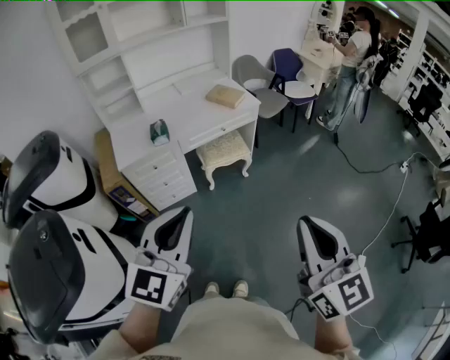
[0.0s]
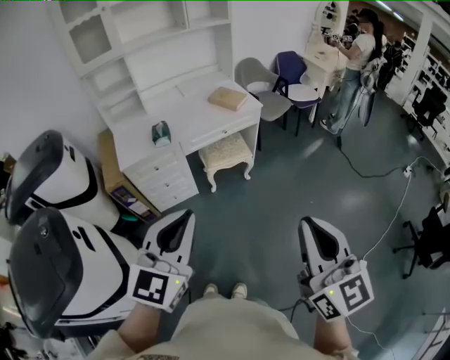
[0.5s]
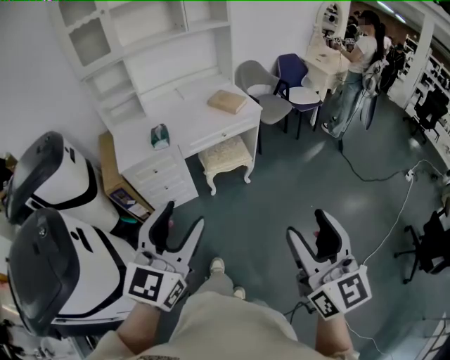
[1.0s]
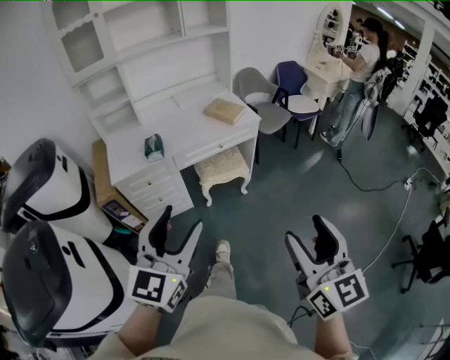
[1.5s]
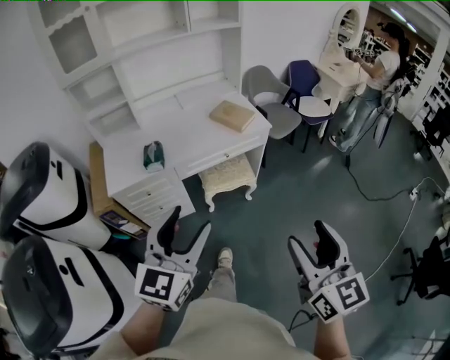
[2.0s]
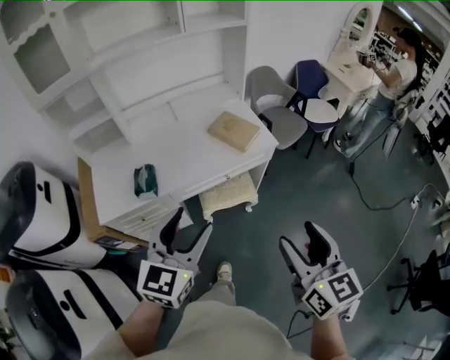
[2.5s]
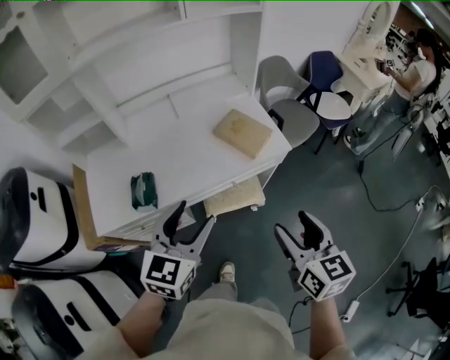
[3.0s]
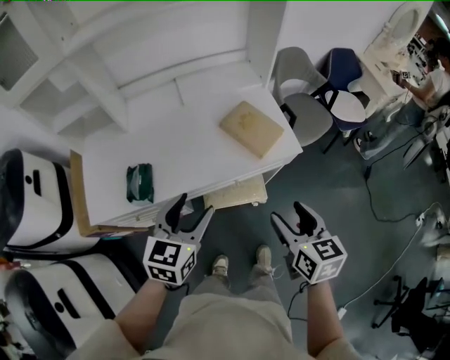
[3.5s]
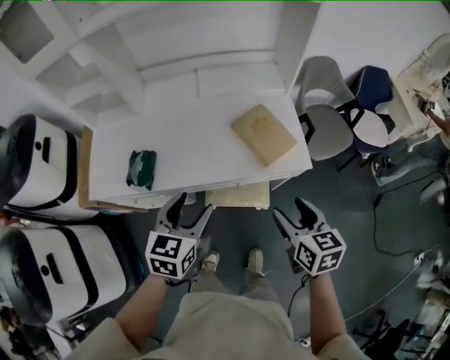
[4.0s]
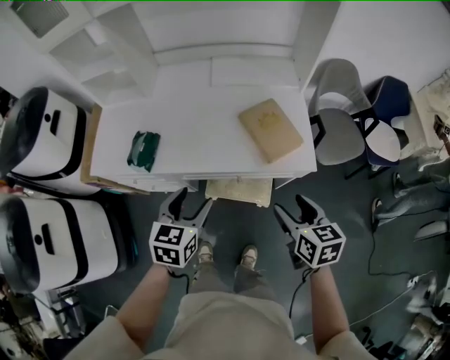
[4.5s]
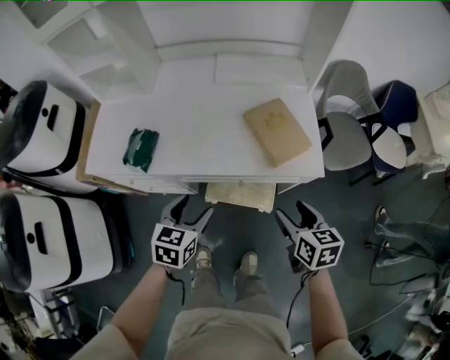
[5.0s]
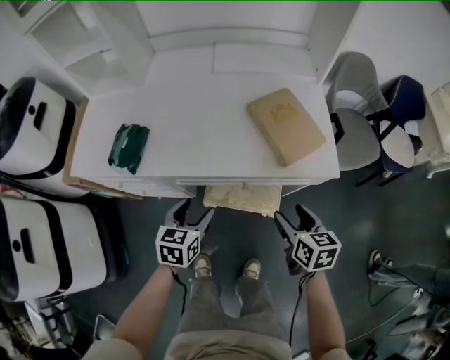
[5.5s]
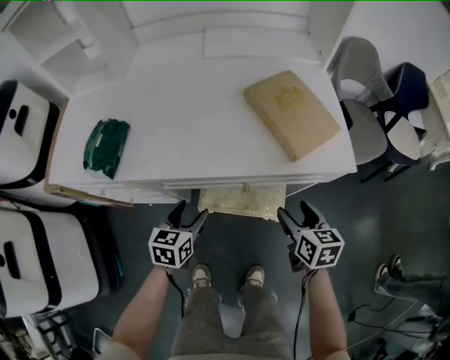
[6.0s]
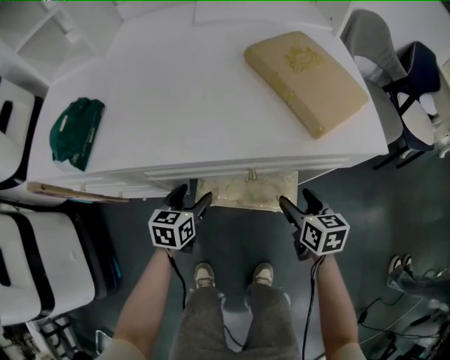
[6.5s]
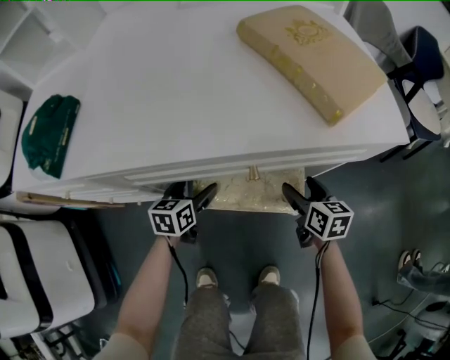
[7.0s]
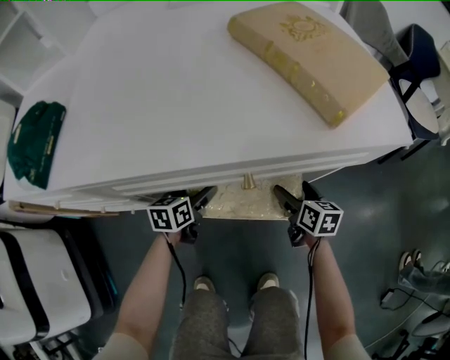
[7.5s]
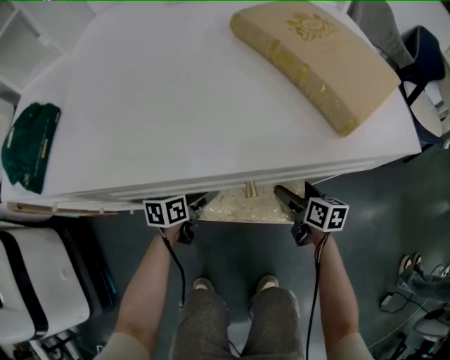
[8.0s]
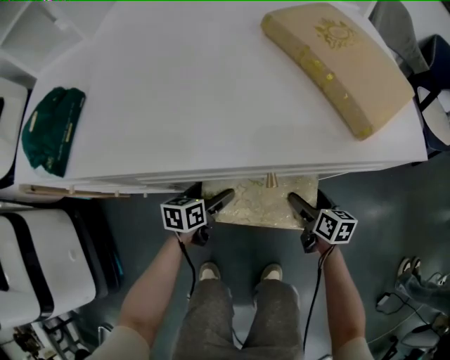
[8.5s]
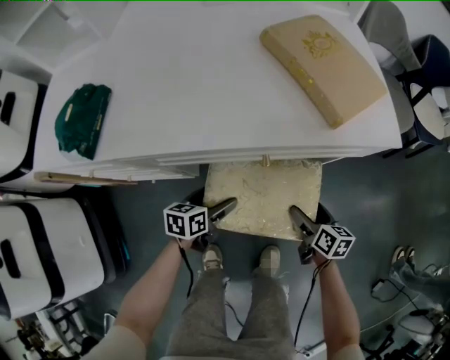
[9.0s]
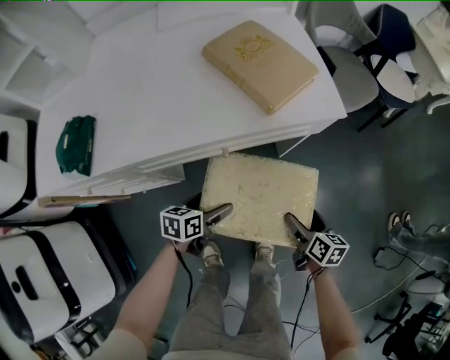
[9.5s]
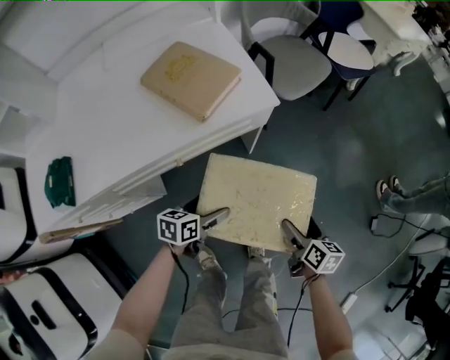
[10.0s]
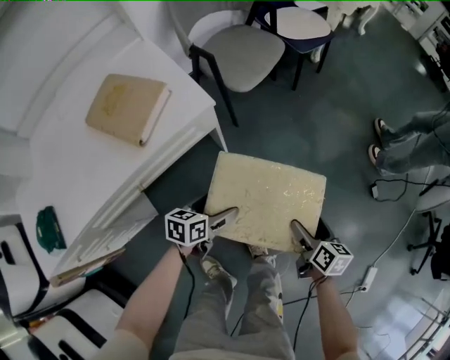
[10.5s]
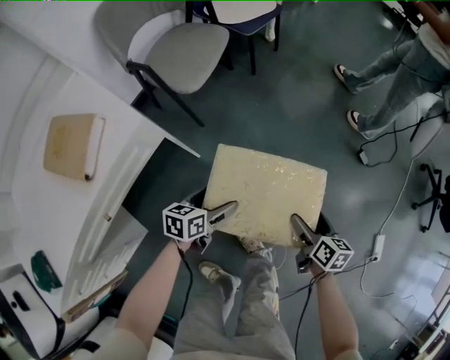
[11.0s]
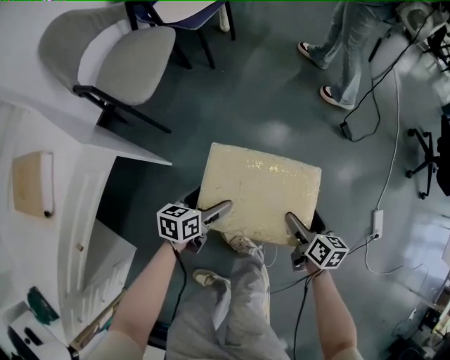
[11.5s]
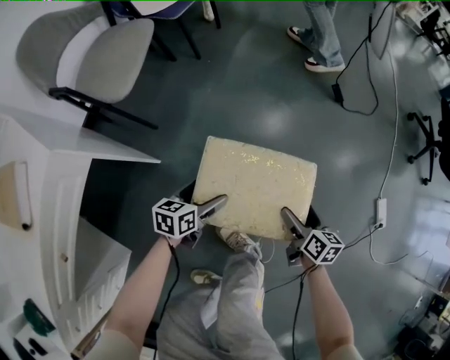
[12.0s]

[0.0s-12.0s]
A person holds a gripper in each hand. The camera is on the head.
0.0s to 2.0s: Both grippers move forward, roughly 20 cm. The right gripper opens. The left gripper opens.
2.0s to 4.0s: Both grippers move forward and downward, approximately 50 cm. The left gripper changes its angle by roughly 30 degrees. Meanwhile the right gripper swivels approximately 40 degrees.
4.0s to 6.0s: Both grippers move downward, roughly 35 cm.
6.0s to 8.0s: The right gripper moves downward, roughly 25 cm, and opens its fingers. Meanwhile the left gripper shifts about 25 cm downward and forward, swivels some 20 degrees, and opens up.
8.0s to 10.0s: The right gripper changes place by some 40 cm, and turns by roughly 30 degrees, while the left gripper shifts by approximately 35 cm, and changes its angle by some 30 degrees.
10.0s to 12.0s: The left gripper ends up approximately 40 cm from where it was, and turns by roughly 40 degrees. Meanwhile the right gripper ends up approximately 35 cm from where it was, and turns by approximately 40 degrees.

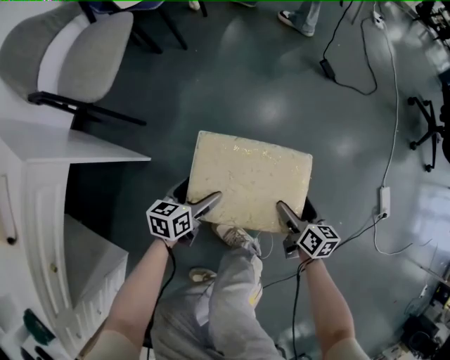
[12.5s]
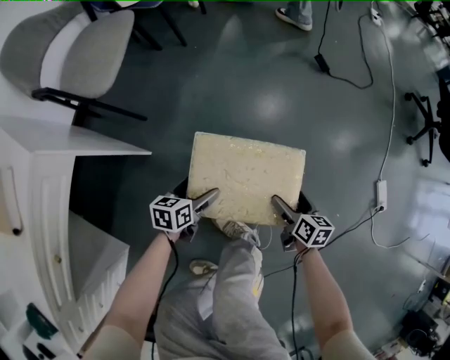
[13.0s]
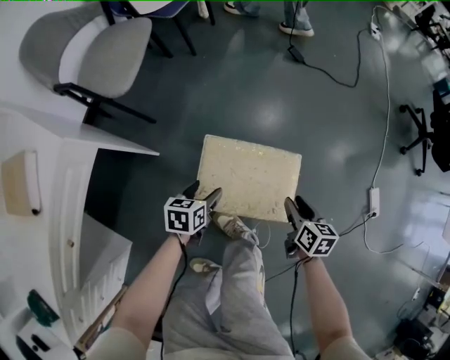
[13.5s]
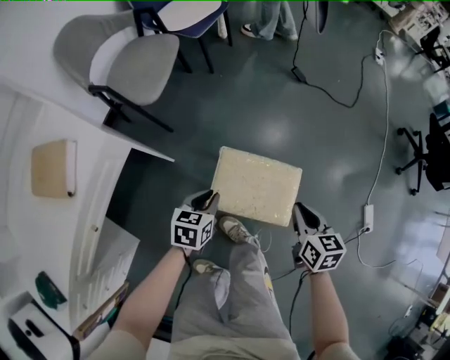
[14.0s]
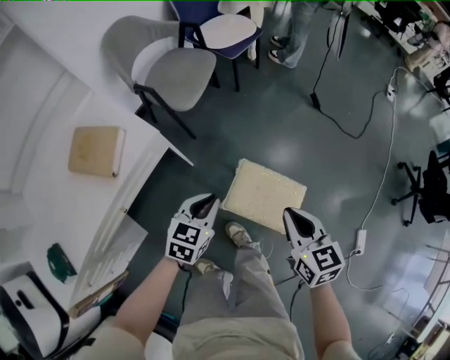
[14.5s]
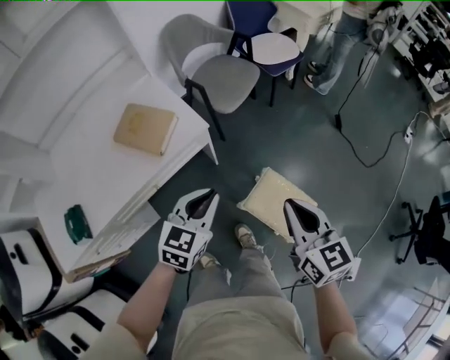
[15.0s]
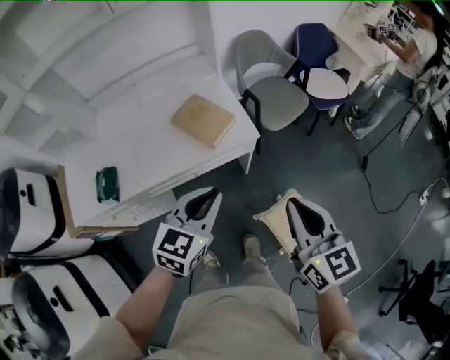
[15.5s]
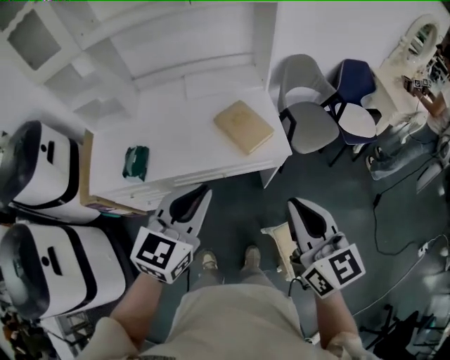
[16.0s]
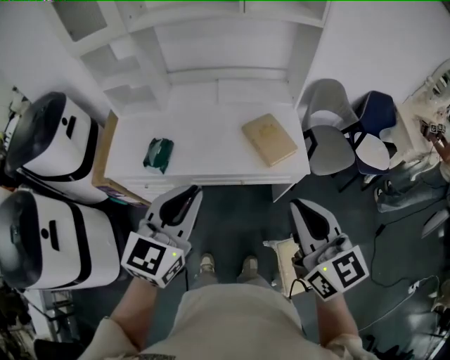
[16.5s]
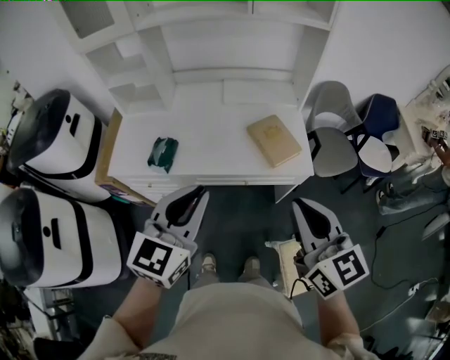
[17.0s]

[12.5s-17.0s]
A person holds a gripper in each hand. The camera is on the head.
12.5s to 14.5s: The right gripper travels upward and to the left by approximately 50 cm, rotates roughly 40 degrees, and closes its fingers. Meanwhile the left gripper heads upward, covering about 35 cm, turns by approximately 30 degrees, and closes its fingers.
14.5s to 17.0s: The right gripper moves approximately 50 cm, and turns by approximately 60 degrees. The left gripper goes roughly 40 cm upward, and changes its angle by approximately 60 degrees.

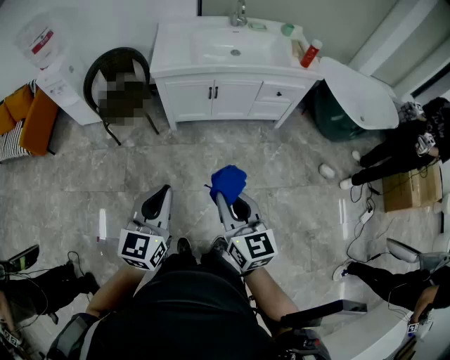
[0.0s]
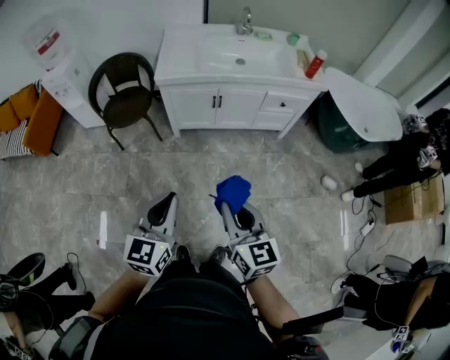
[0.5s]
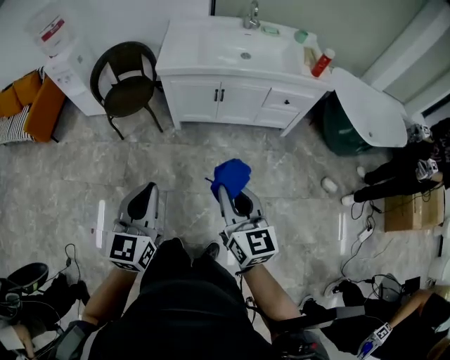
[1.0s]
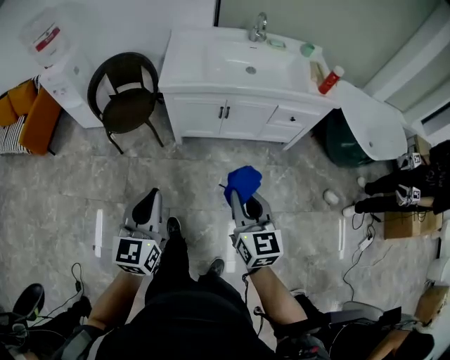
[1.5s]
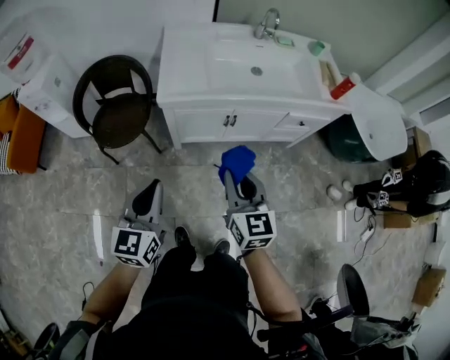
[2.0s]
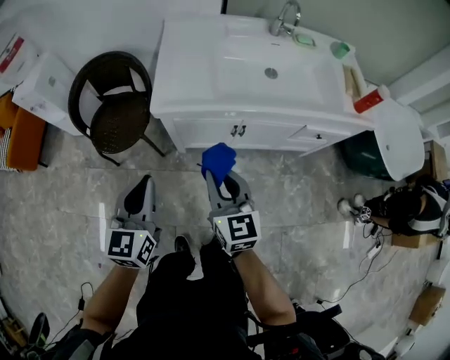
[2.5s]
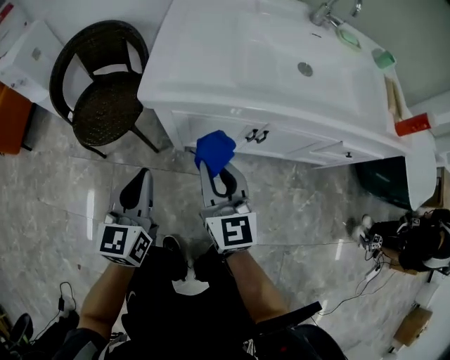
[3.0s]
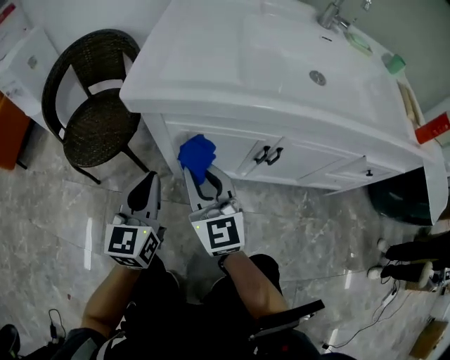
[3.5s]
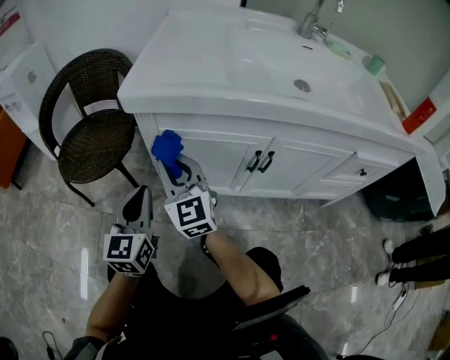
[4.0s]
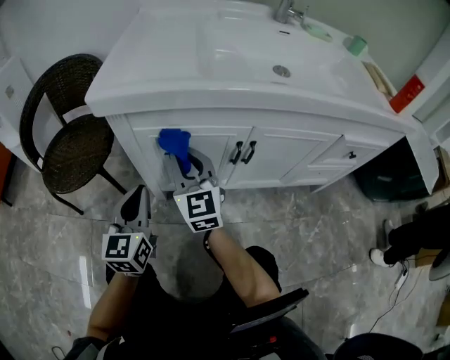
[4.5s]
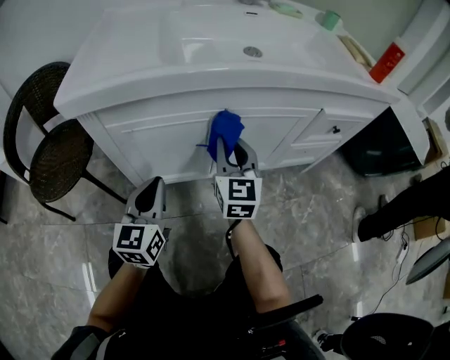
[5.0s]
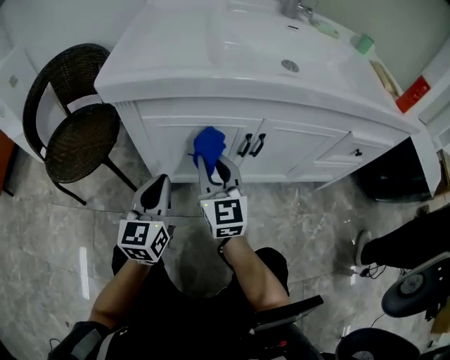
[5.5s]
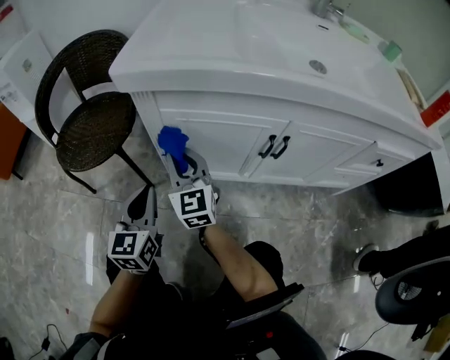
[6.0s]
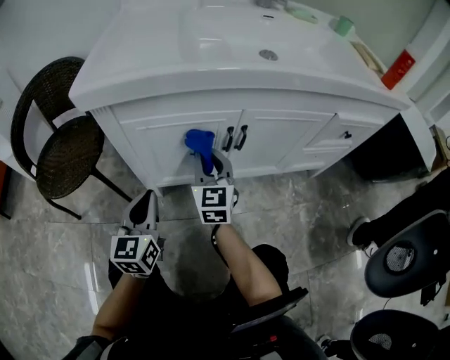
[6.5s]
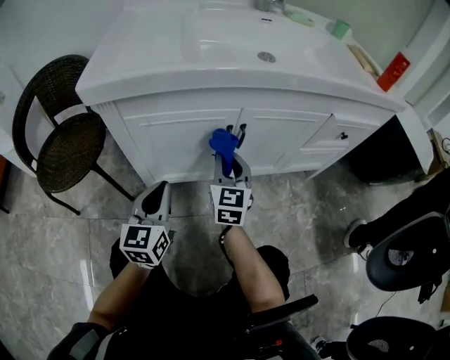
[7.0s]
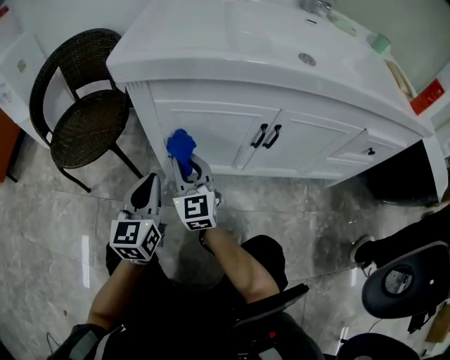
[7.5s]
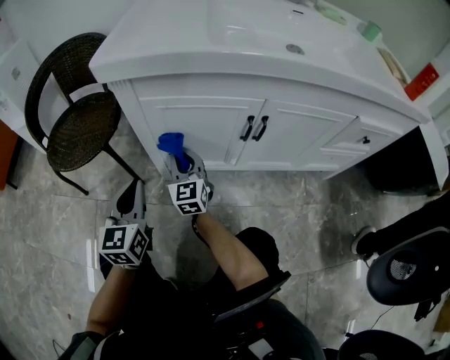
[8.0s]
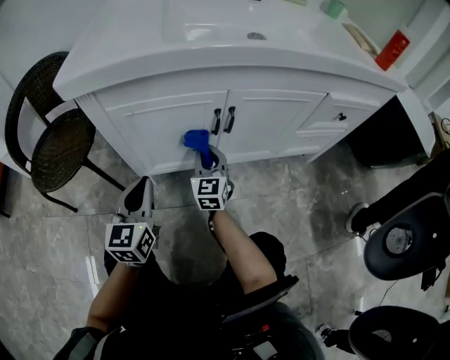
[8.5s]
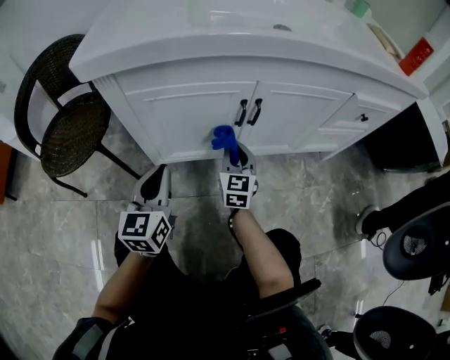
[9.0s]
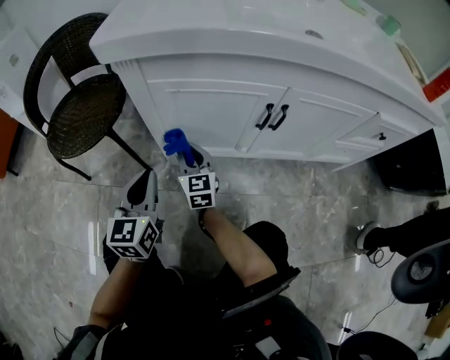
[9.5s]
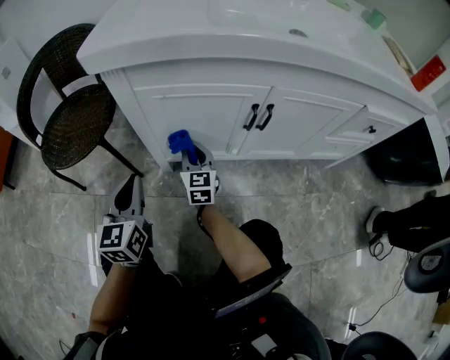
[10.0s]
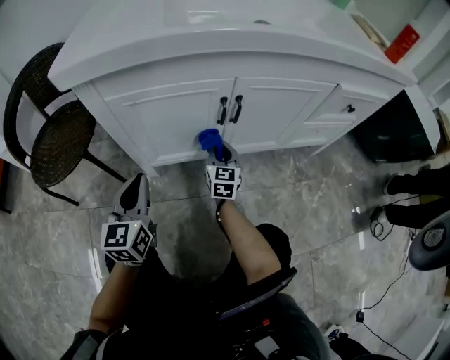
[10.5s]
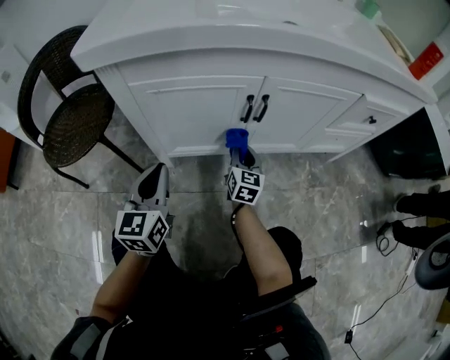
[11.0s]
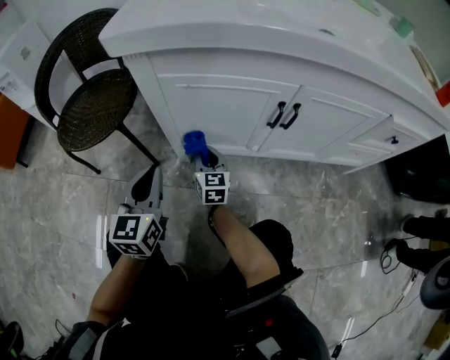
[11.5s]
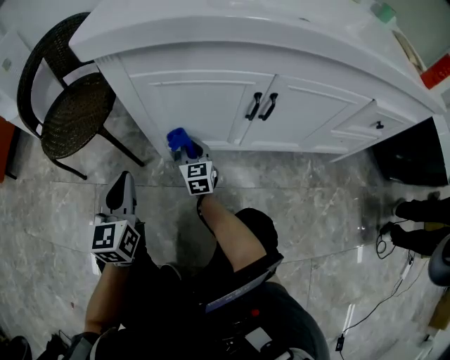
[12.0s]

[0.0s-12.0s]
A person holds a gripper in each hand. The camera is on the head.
0.0s to 2.0s: The right gripper goes some 35 cm forward. Meanwhile the left gripper is displaced forward and to the left by approximately 30 cm.
2.0s to 4.0s: The two grippers go approximately 50 cm downward and forward. The right gripper rotates roughly 30 degrees.
4.0s to 6.0s: The two grippers go some 10 cm downward.
6.0s to 8.0s: The left gripper travels to the right and back again, approximately 10 cm each way. The right gripper is displaced downward by about 10 cm, and moves approximately 25 cm to the right and comes back.
8.0s to 10.0s: The right gripper moves left and right over approximately 20 cm, changing direction 2 times, while the left gripper moves some 10 cm to the right and comes back.
10.0s to 12.0s: The right gripper travels downward by some 5 cm, and reaches about 20 cm to the right, then returns; the left gripper moves approximately 10 cm to the right and comes back.
